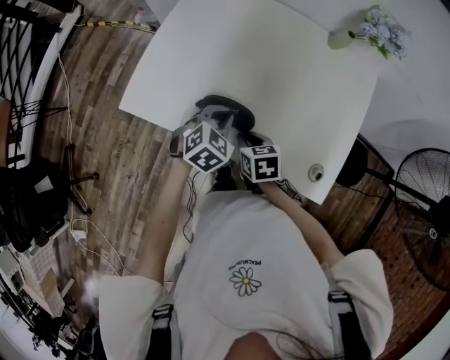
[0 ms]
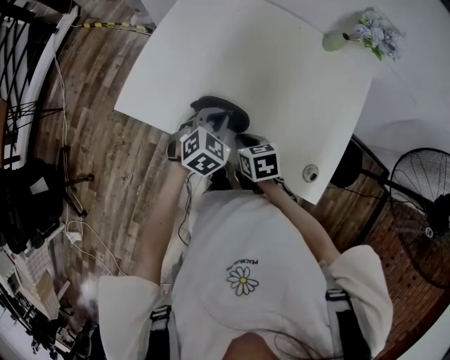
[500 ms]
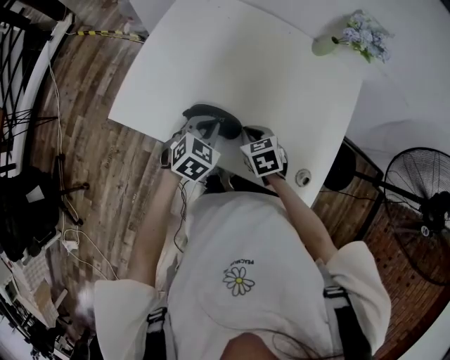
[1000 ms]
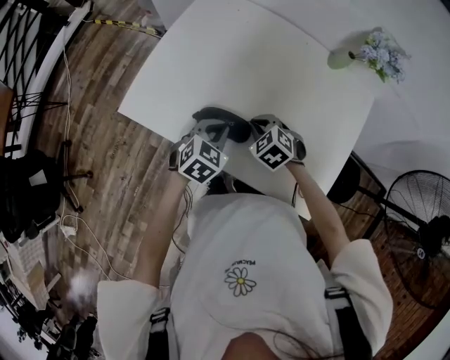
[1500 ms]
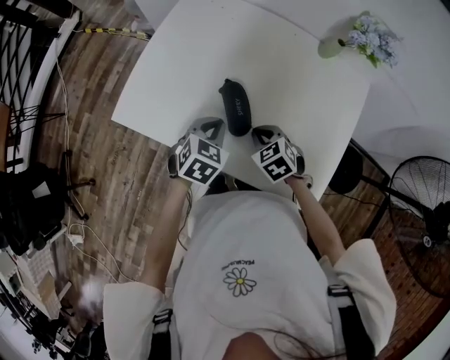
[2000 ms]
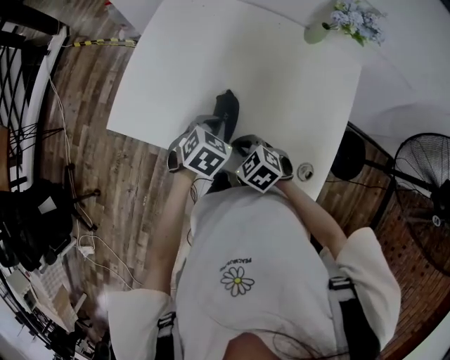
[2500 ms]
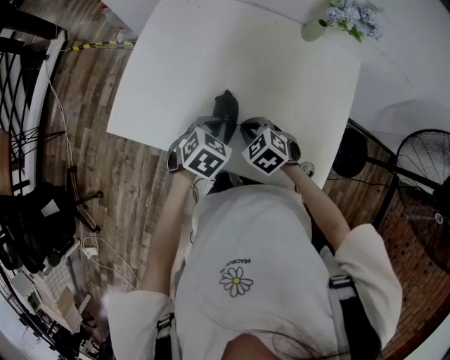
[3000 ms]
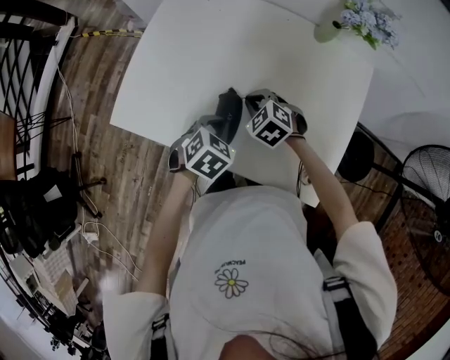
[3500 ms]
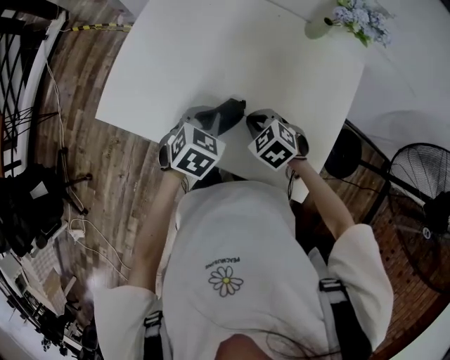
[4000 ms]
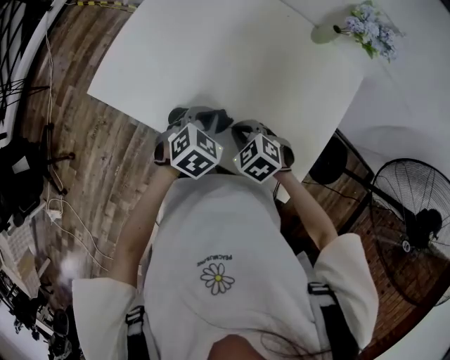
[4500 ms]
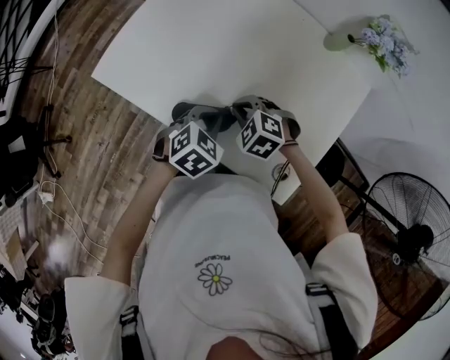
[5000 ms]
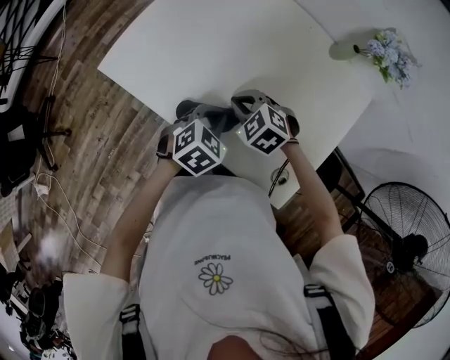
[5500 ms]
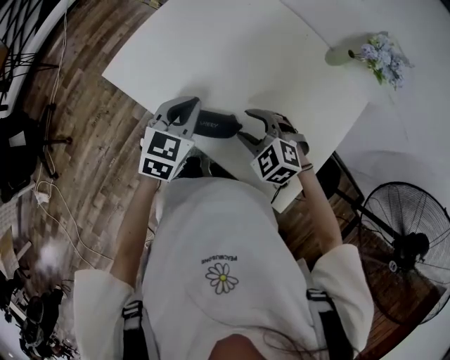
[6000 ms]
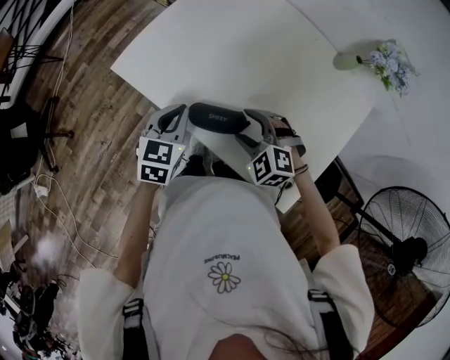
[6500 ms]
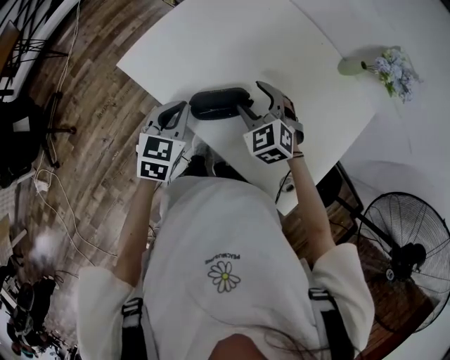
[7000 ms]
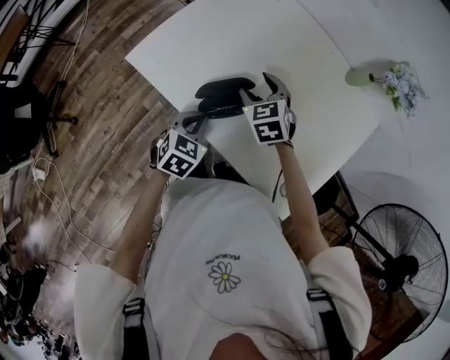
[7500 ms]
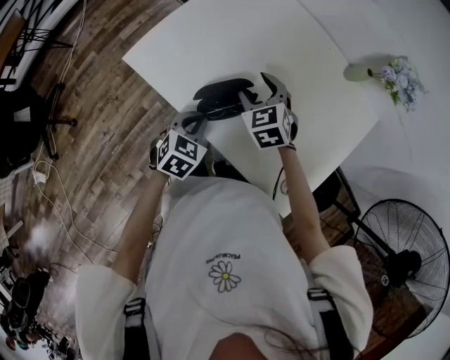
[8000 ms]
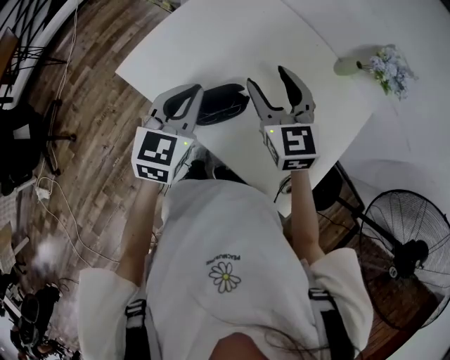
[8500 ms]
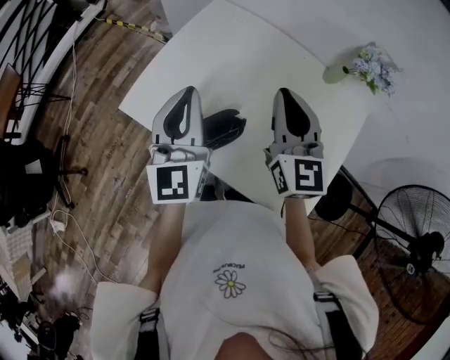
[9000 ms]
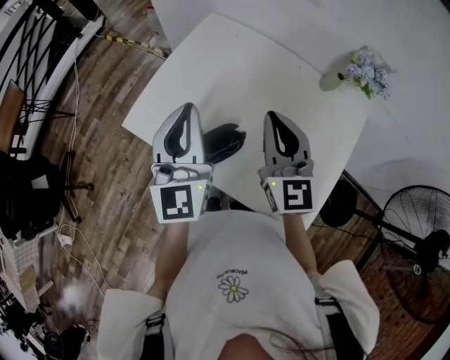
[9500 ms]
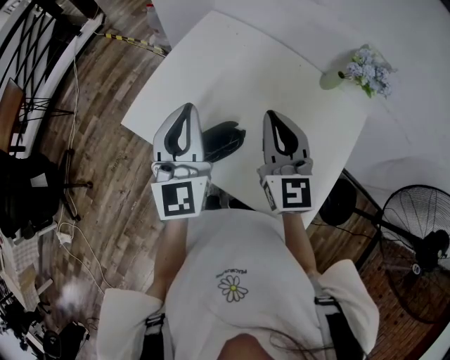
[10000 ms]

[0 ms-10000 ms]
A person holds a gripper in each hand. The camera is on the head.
0 ms to 2000 ms: The right gripper shifts some 5 cm to the right, and turns by about 40 degrees.
2000 ms to 4000 ms: The right gripper moves forward and backward over roughly 15 cm, changing direction 2 times.
4000 ms to 6000 ms: The left gripper moves to the left and upward, roughly 10 cm, and swivels roughly 30 degrees. Meanwhile the right gripper goes forward and backward, roughly 10 cm each way, reversing 2 times, changes its angle by approximately 30 degrees, and opens up.
6000 ms to 8000 ms: The right gripper travels forward by approximately 10 cm, and rotates approximately 30 degrees. Meanwhile the left gripper goes about 10 cm downward.
8000 ms to 10000 ms: Both grippers travel together upward, some 25 cm. The right gripper angles its fingers upward, by about 40 degrees, and closes. The left gripper points its fingers about 50 degrees further upward.

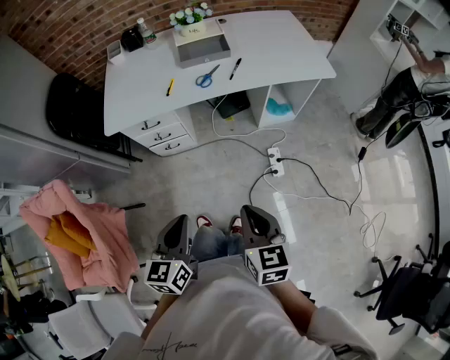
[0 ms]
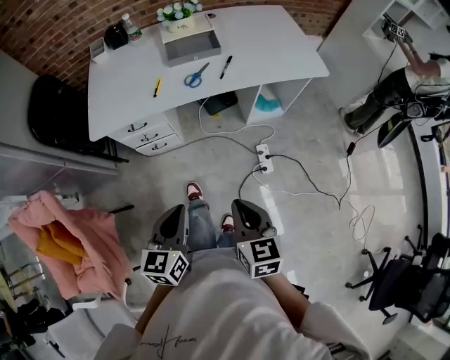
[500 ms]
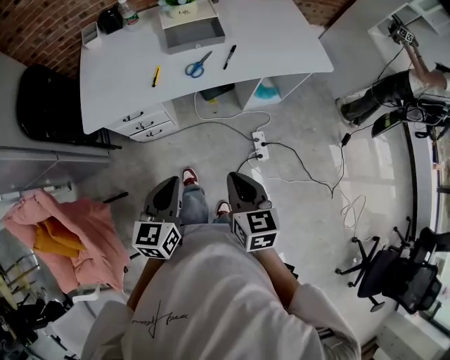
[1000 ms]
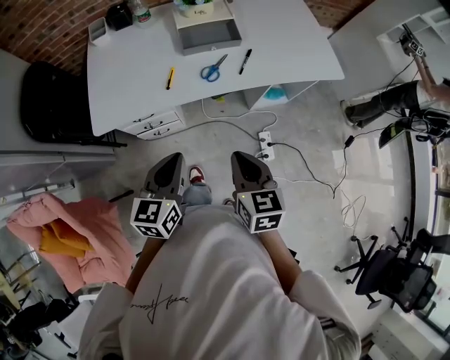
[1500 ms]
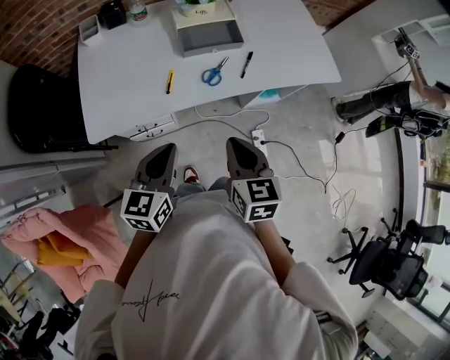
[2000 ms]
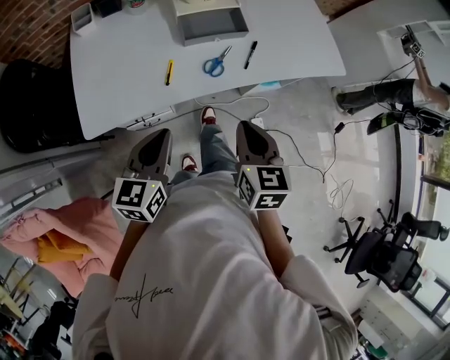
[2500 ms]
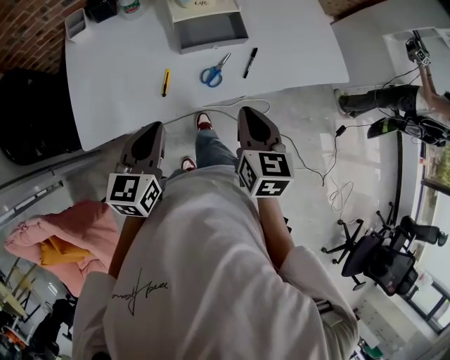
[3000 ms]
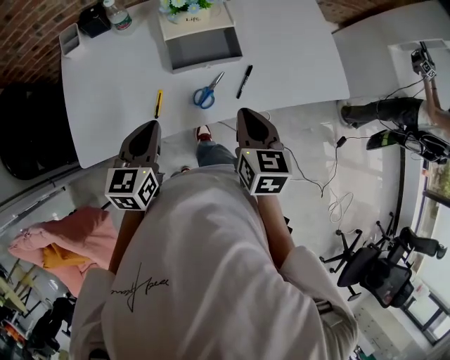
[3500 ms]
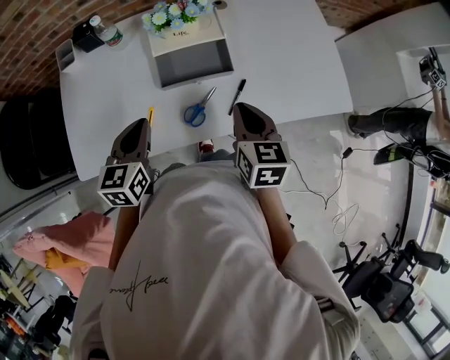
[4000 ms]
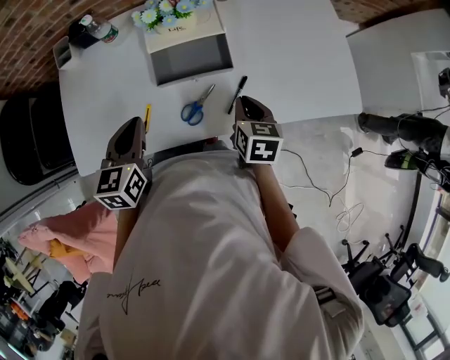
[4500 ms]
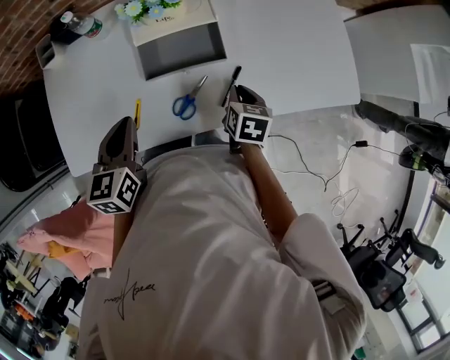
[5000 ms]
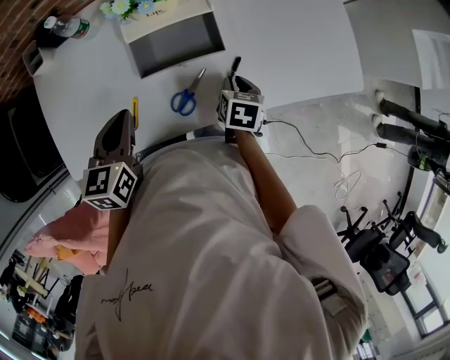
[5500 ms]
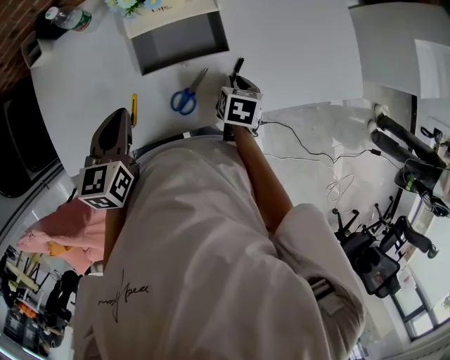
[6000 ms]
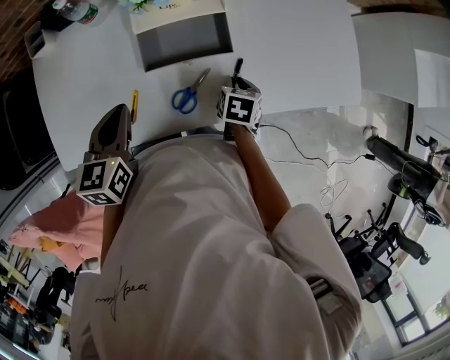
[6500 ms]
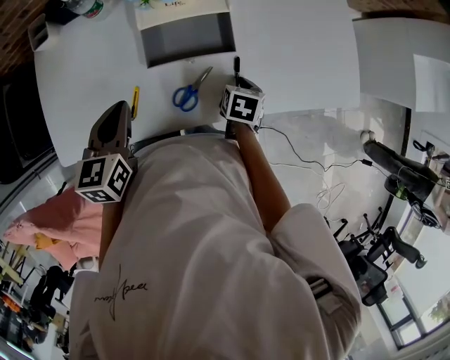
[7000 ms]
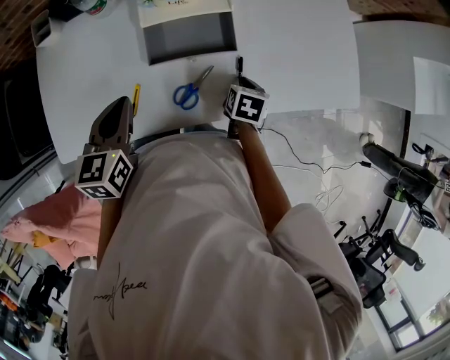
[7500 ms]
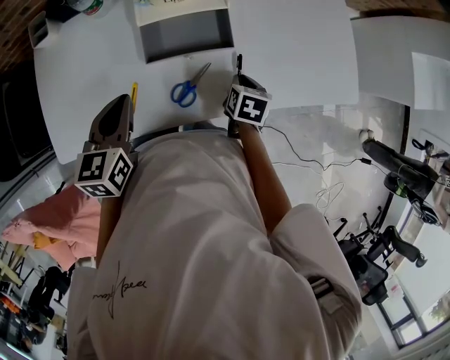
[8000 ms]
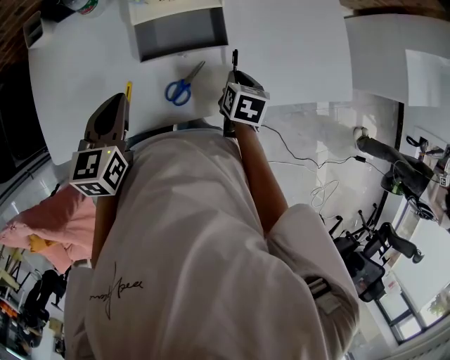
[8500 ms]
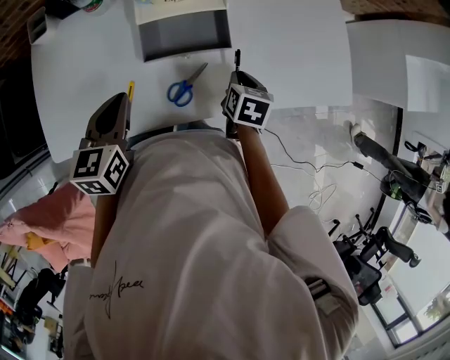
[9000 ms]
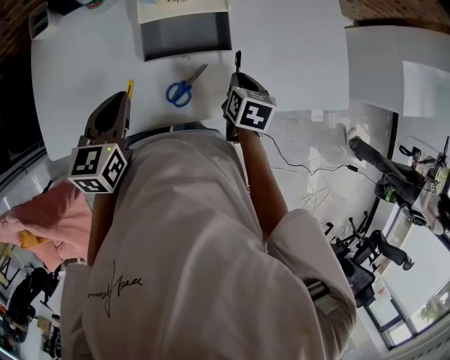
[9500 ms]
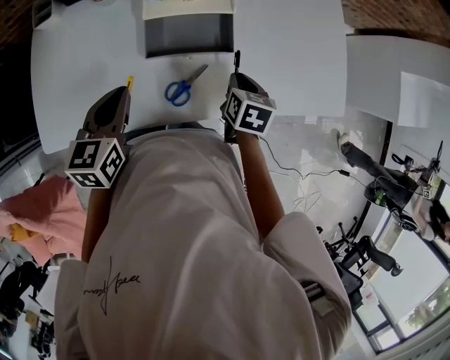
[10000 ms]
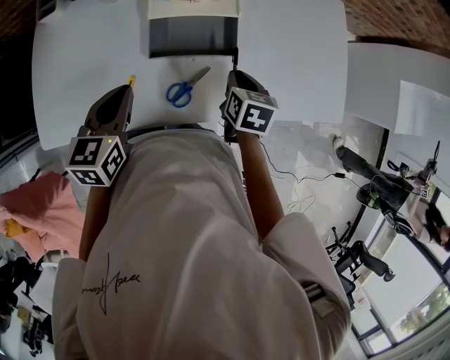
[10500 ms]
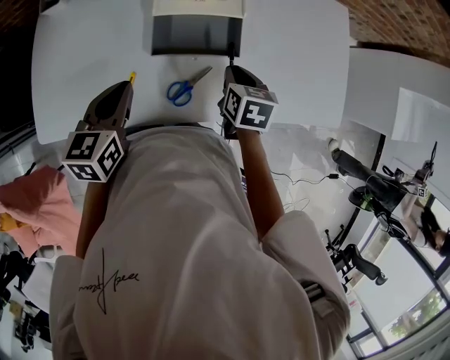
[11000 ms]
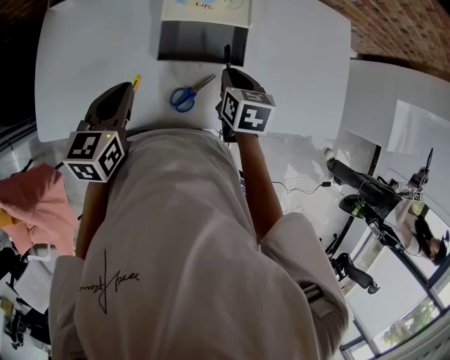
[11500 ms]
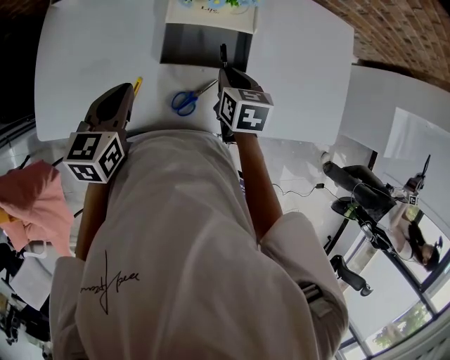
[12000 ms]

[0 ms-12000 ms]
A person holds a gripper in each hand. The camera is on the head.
0 ms to 2000 ms: The two grippers go approximately 35 cm forward and to the left.
2000 ms to 4000 ms: The two grippers go about 25 cm forward.
4000 ms to 6000 ms: The left gripper ends up approximately 5 cm from where it was, while the right gripper is displaced downward by approximately 20 cm, and changes its angle by roughly 30 degrees.
6000 ms to 8000 ms: The grippers move only a little.
8000 ms to 10000 ms: The right gripper is displaced upward by some 5 cm.
10000 ms to 12000 ms: The right gripper is displaced to the left and forward by roughly 10 cm.

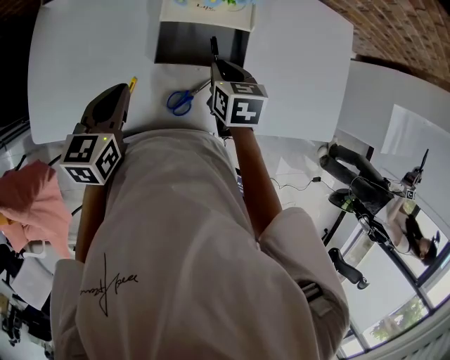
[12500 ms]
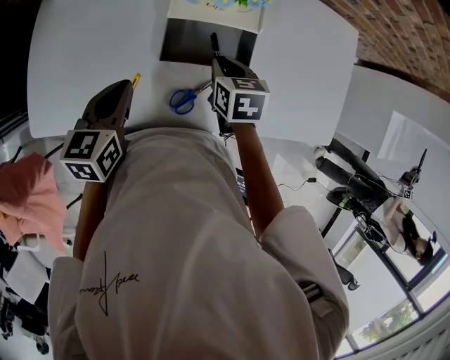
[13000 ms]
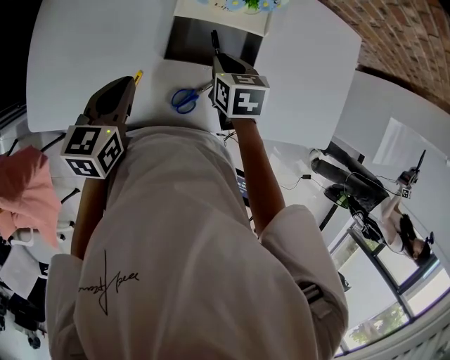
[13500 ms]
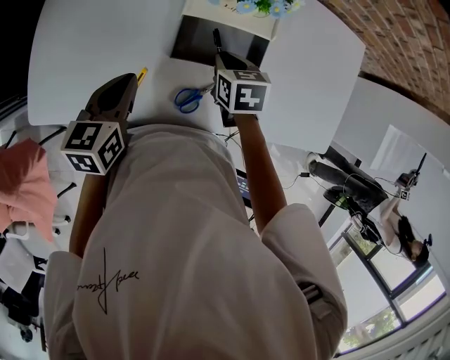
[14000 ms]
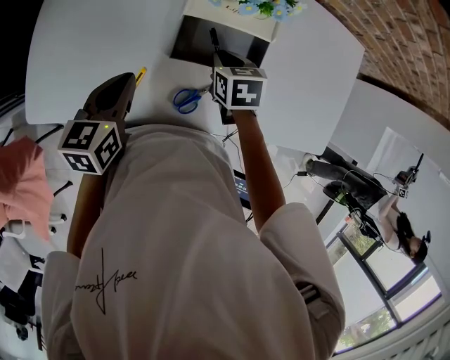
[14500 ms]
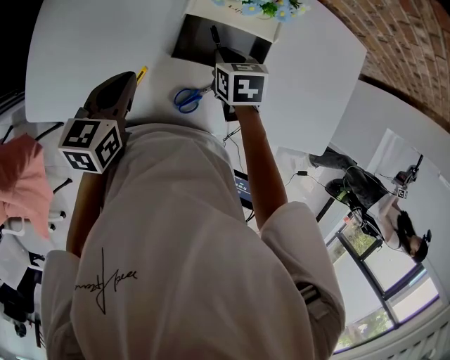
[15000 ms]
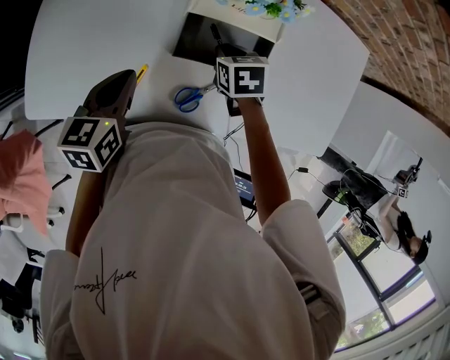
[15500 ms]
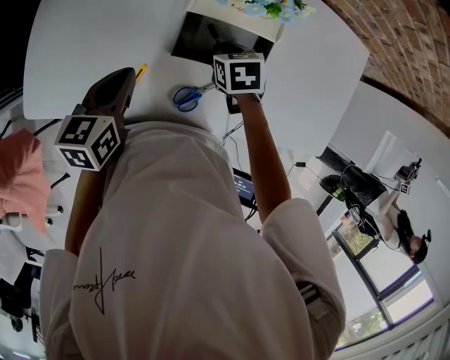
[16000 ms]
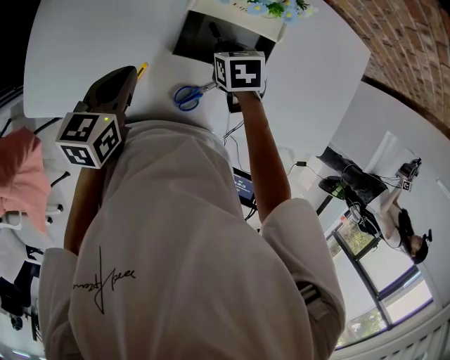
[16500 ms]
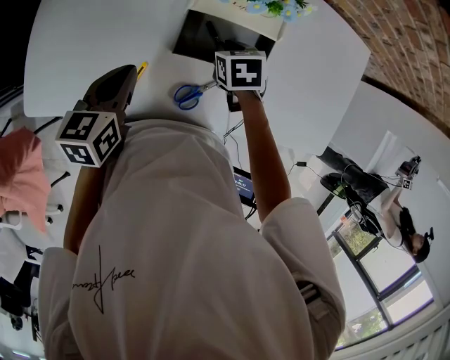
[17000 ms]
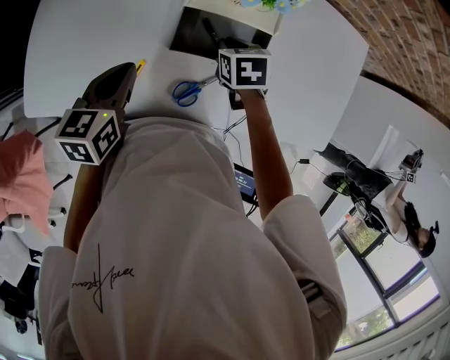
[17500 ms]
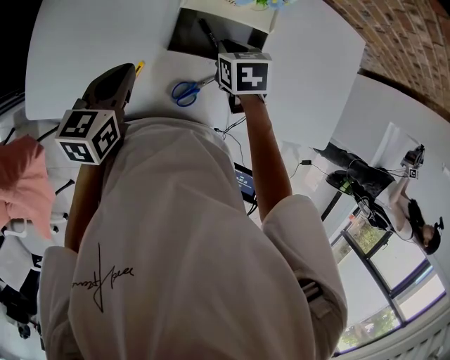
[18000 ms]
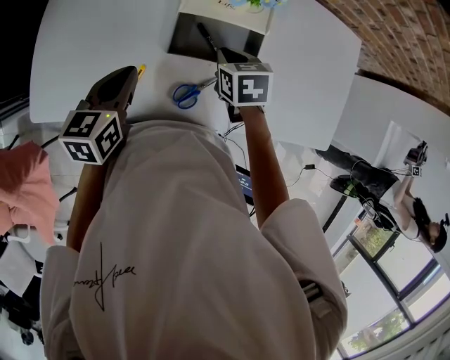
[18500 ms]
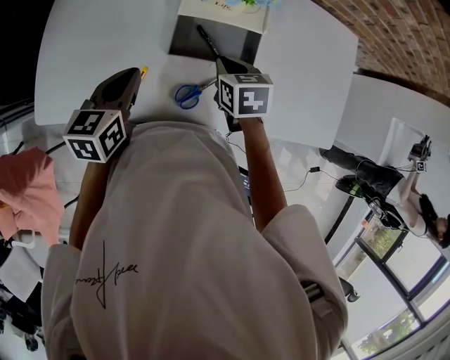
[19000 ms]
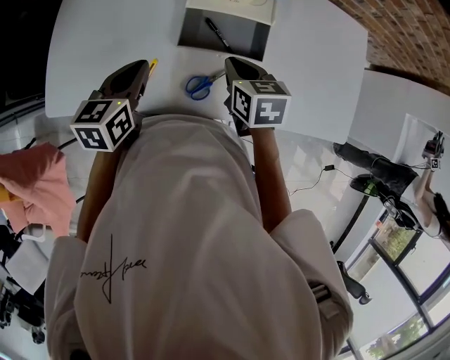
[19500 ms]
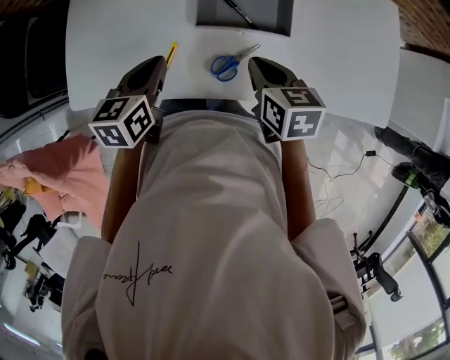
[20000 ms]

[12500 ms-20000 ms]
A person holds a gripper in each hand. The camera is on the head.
12500 ms to 14500 ms: The right gripper moves roughly 5 cm.
14500 ms to 18000 ms: There are only small adjustments of the grippers.
18000 ms to 20000 ms: The right gripper travels backward and upward by approximately 15 cm, and swivels roughly 20 degrees.
